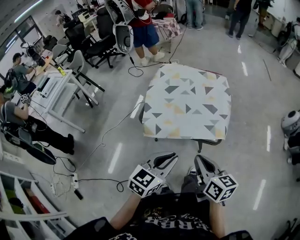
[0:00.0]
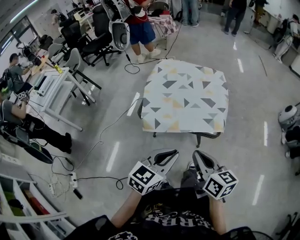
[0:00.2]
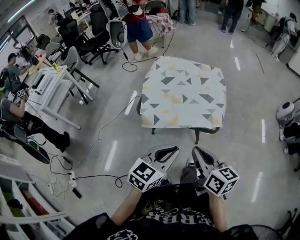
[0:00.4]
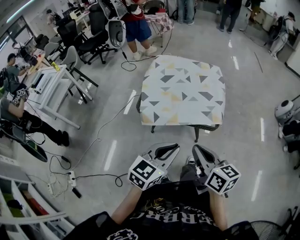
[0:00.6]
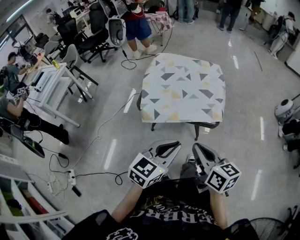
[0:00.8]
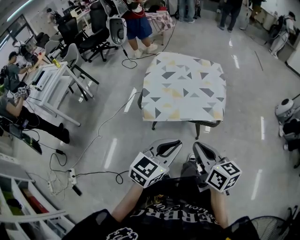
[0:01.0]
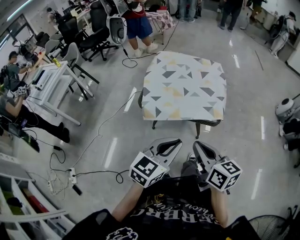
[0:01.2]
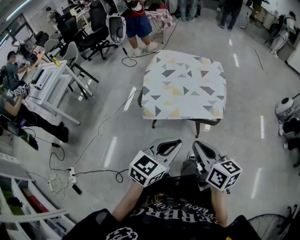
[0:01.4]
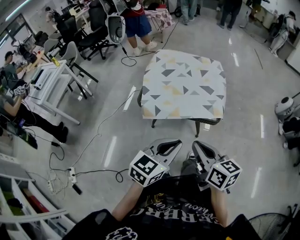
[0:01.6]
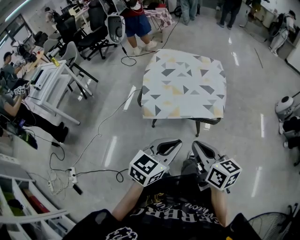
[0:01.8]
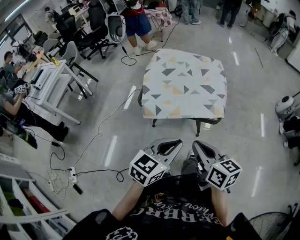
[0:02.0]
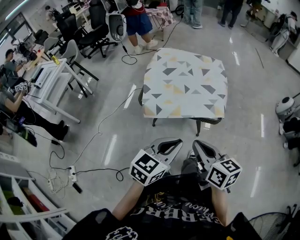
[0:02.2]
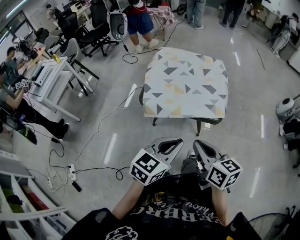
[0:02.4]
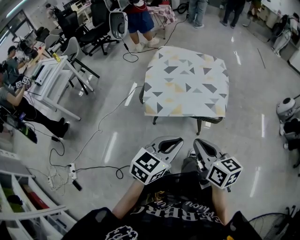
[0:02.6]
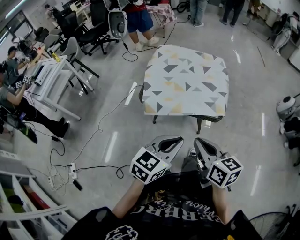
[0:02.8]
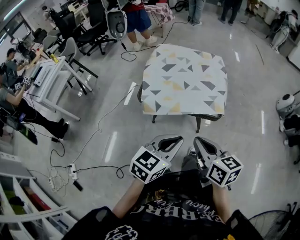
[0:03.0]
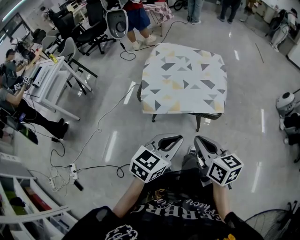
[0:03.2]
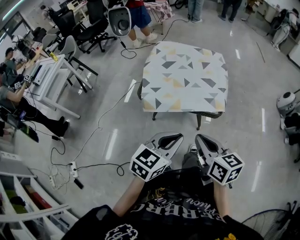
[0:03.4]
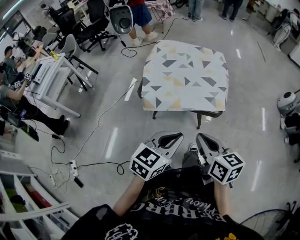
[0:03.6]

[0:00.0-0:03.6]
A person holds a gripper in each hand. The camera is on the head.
0:00.0 to 0:01.8: Both grippers travel together backward, roughly 5 cm.
0:01.8 to 0:03.6: The grippers stay close to where they were, moving slightly.

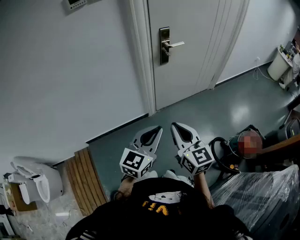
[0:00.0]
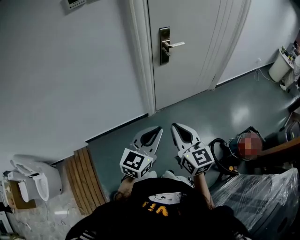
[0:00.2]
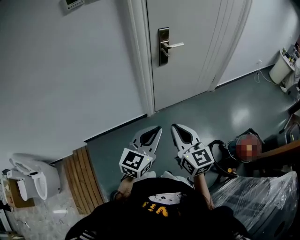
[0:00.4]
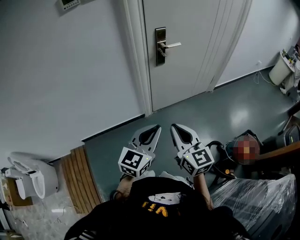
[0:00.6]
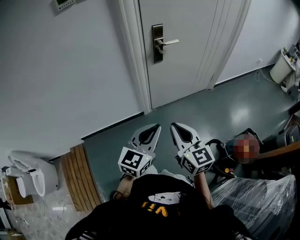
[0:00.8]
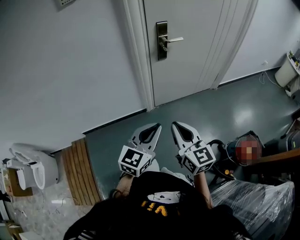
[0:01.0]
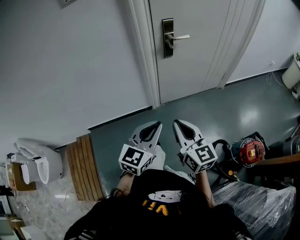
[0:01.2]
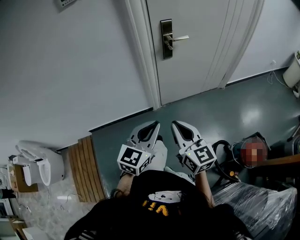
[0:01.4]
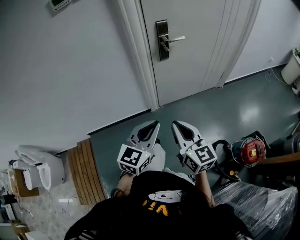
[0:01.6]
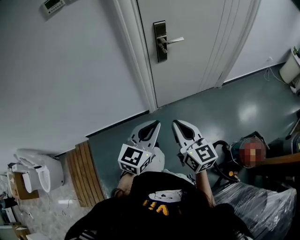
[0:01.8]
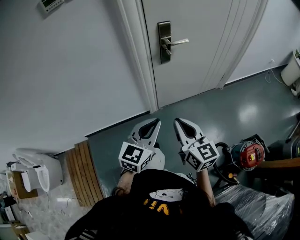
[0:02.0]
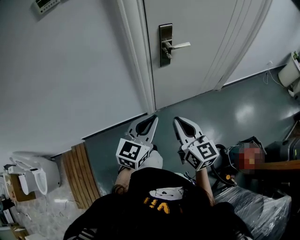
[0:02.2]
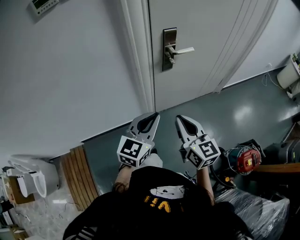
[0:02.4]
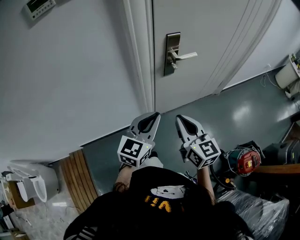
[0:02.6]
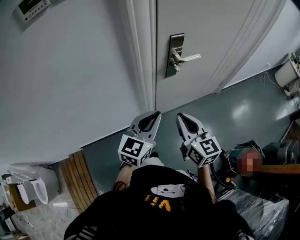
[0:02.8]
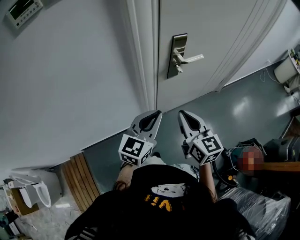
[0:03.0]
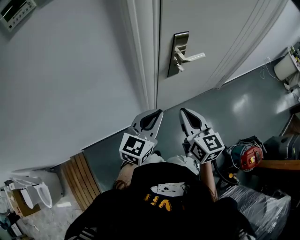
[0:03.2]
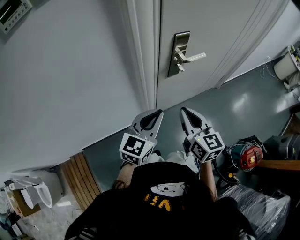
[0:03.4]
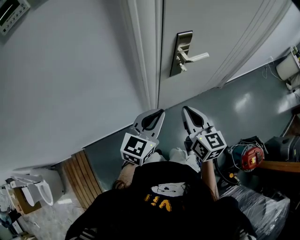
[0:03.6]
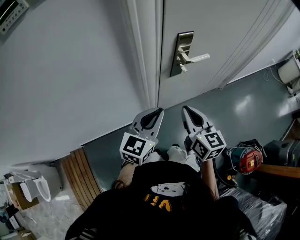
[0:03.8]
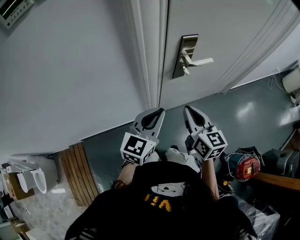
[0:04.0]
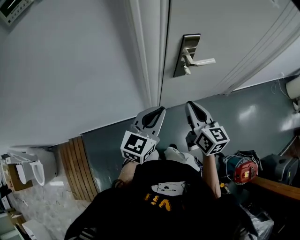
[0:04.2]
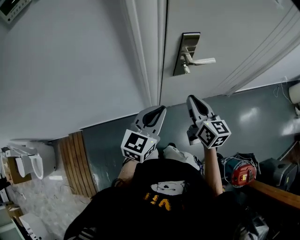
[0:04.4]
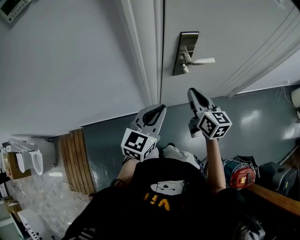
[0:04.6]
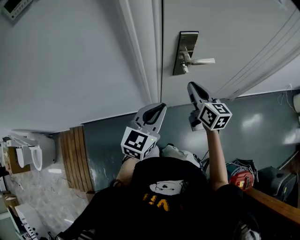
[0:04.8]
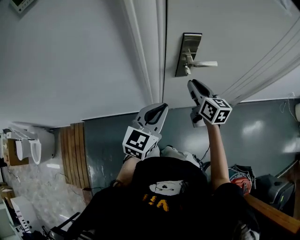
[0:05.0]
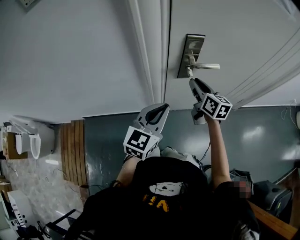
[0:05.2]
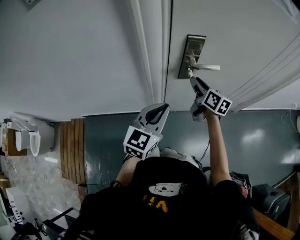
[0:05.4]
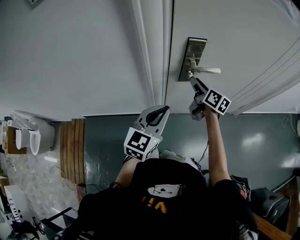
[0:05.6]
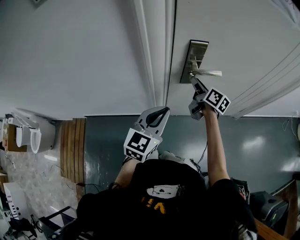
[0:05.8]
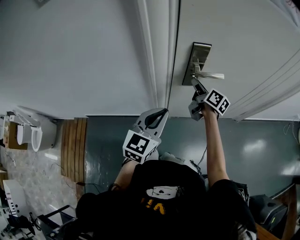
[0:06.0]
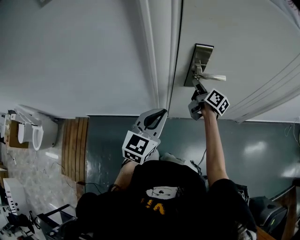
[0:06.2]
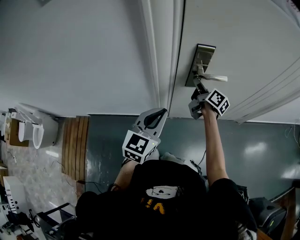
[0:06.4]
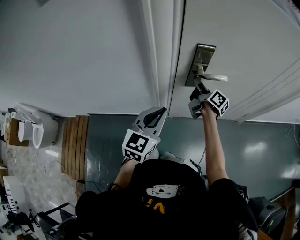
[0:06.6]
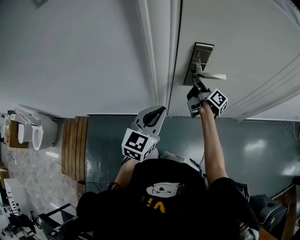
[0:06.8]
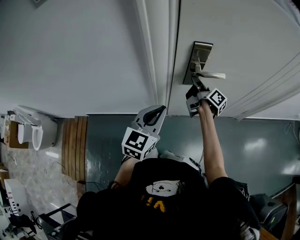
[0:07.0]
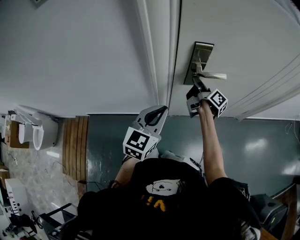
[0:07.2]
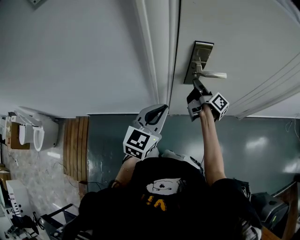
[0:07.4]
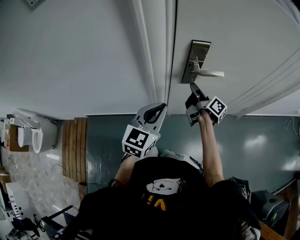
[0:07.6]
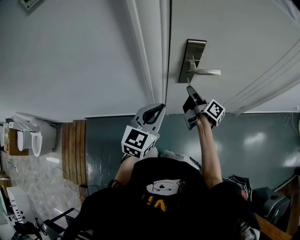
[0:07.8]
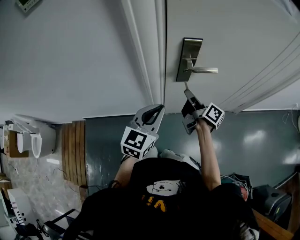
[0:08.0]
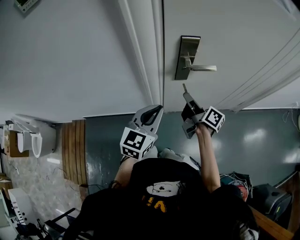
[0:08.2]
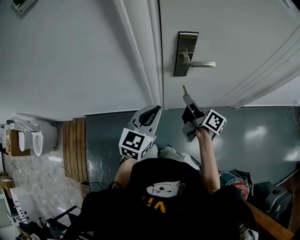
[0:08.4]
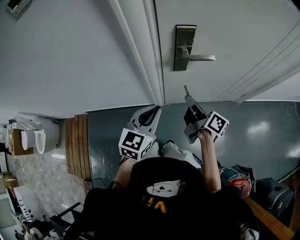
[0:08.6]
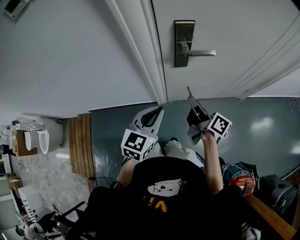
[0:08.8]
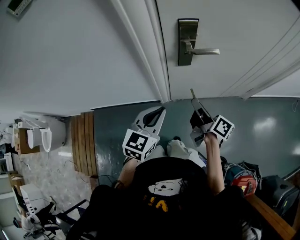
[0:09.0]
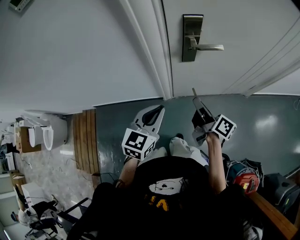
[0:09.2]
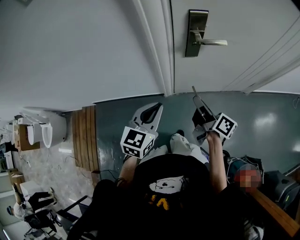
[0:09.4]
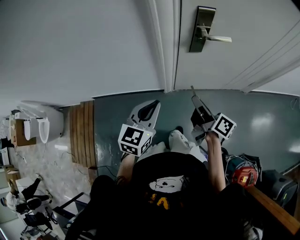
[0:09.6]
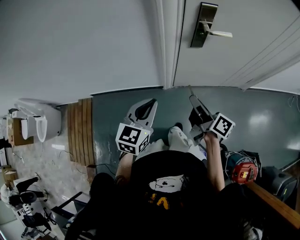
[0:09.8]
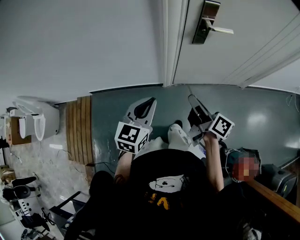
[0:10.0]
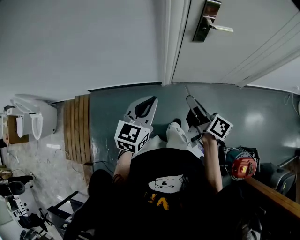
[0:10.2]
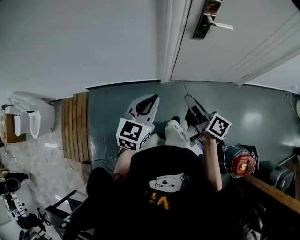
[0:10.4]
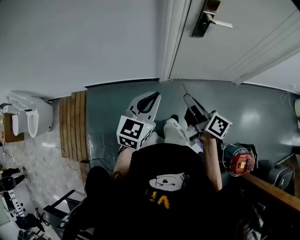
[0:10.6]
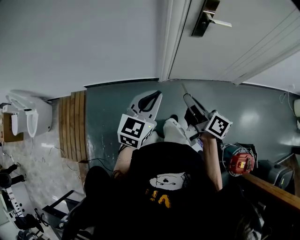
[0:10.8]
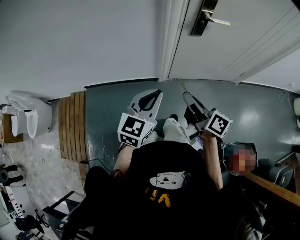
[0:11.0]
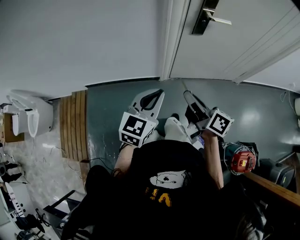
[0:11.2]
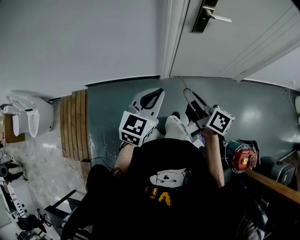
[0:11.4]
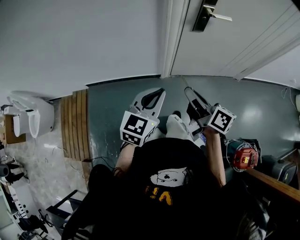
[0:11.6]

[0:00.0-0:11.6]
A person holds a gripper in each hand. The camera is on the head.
0:00.0 to 0:01.4: Both grippers travel together to the right, some 5 cm.
0:01.4 to 0:02.8: Both grippers travel together forward, roughly 25 cm.
0:02.8 to 0:04.4: The right gripper travels forward by approximately 15 cm; the left gripper shifts roughly 5 cm forward.
0:04.4 to 0:05.8: The right gripper travels forward and downward by roughly 15 cm, turns by roughly 30 degrees, and opens.
0:05.8 to 0:07.2: The right gripper turns by about 30 degrees, and closes its fingers.
0:07.2 to 0:08.8: The left gripper ends up roughly 5 cm from where it was; the right gripper heads backward, covering roughly 20 cm.
0:08.8 to 0:10.2: The left gripper is displaced to the left and backward by approximately 20 cm. The right gripper goes about 20 cm backward and to the left.
0:10.2 to 0:11.6: The two grippers go some 5 cm backward.

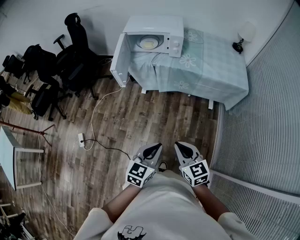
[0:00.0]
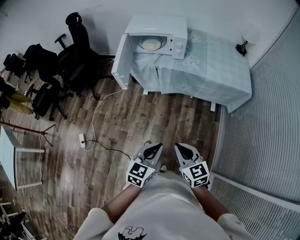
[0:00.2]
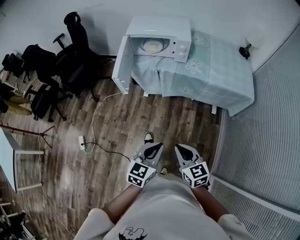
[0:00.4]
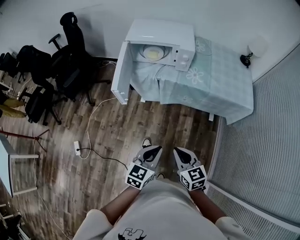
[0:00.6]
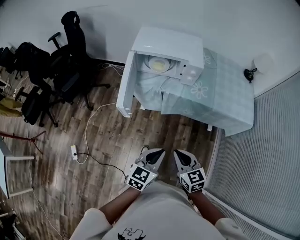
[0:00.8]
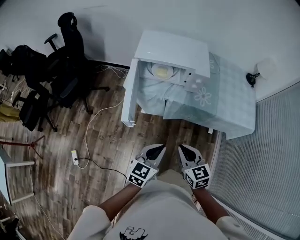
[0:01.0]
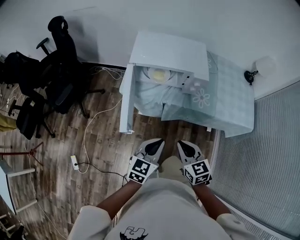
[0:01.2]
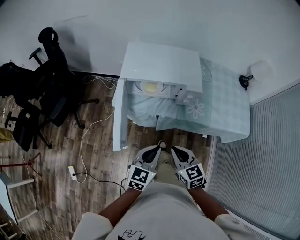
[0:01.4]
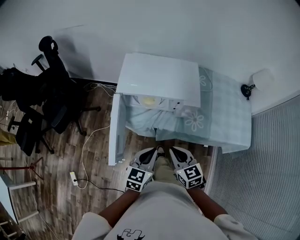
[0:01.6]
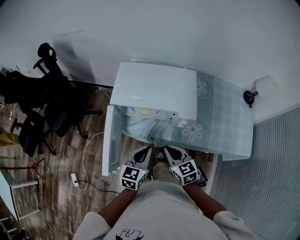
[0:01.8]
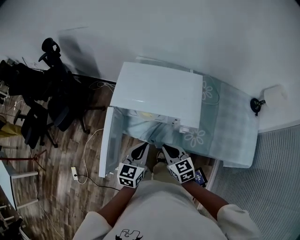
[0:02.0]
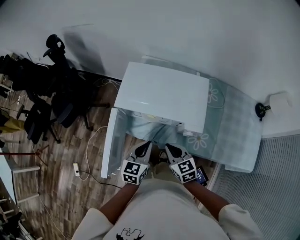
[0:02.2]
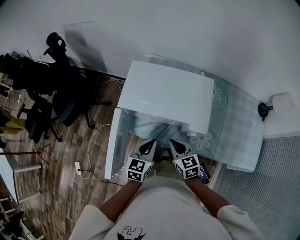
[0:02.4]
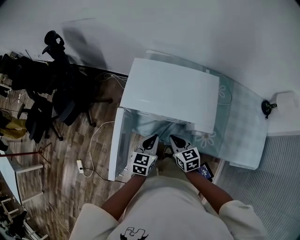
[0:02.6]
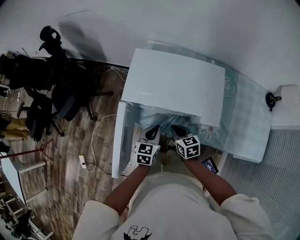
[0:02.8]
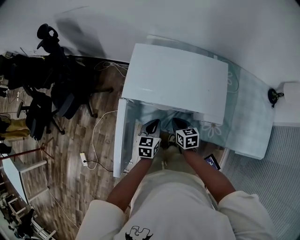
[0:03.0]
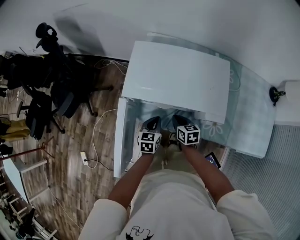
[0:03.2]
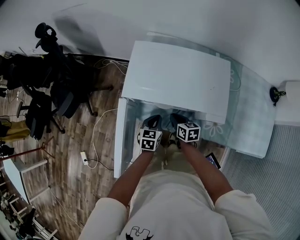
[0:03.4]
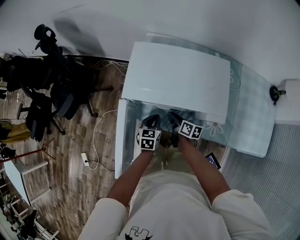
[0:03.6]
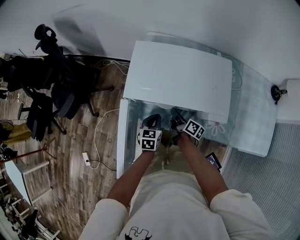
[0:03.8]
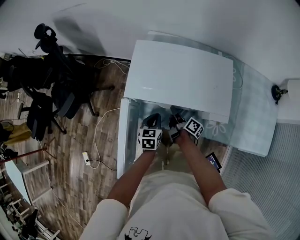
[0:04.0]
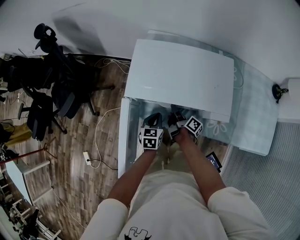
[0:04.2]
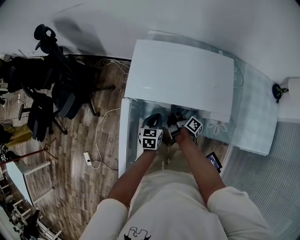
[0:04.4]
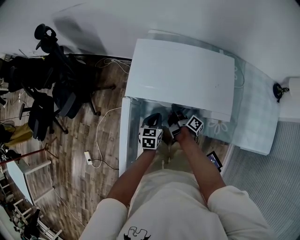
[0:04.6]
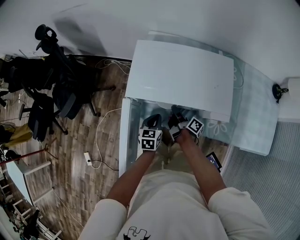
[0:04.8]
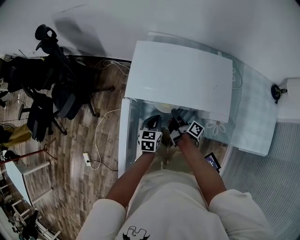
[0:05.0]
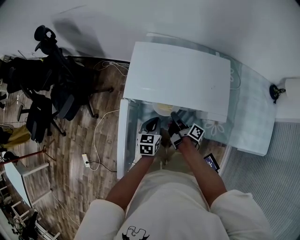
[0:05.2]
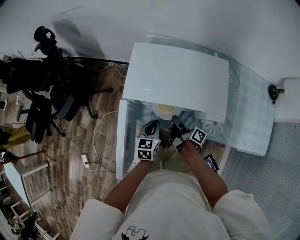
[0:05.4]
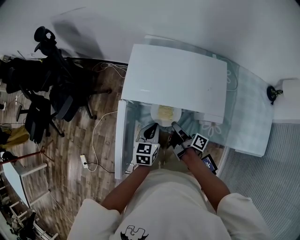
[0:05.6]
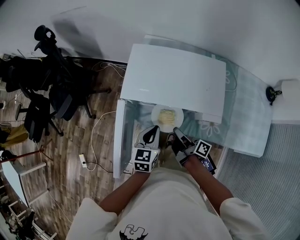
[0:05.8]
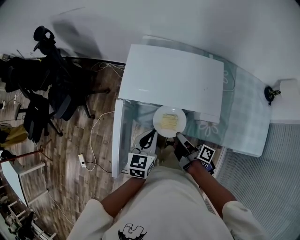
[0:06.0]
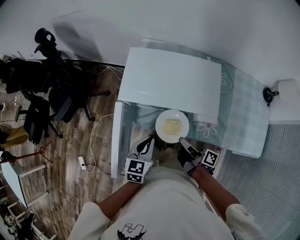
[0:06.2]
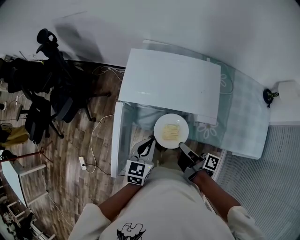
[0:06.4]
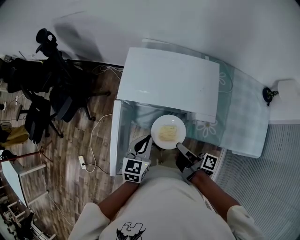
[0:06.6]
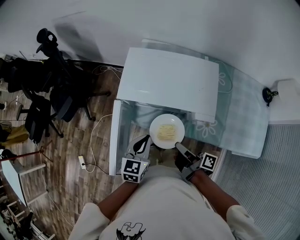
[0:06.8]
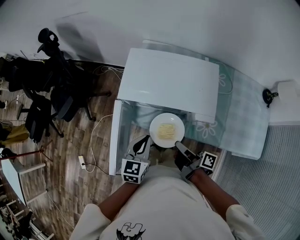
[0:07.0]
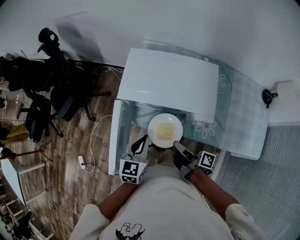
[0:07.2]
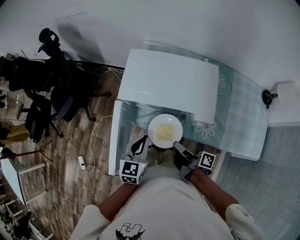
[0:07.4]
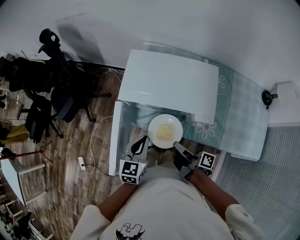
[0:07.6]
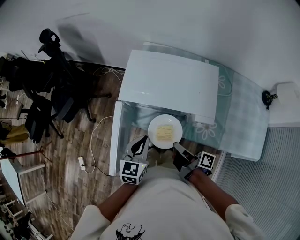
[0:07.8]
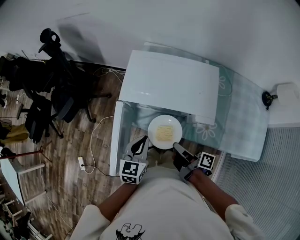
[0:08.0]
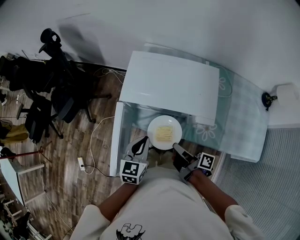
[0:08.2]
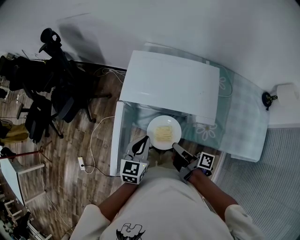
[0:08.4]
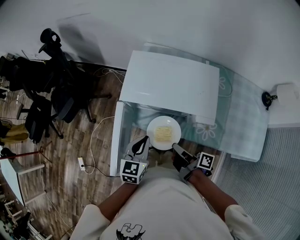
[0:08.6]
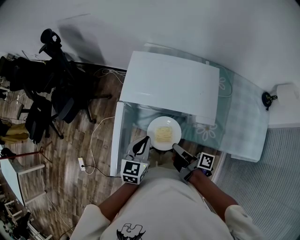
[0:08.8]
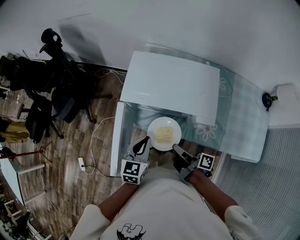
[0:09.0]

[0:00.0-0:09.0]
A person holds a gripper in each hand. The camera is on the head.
0:00.0 to 0:01.6: The two grippers travel together, forward, some 50 cm.
0:01.6 to 0:03.0: Both grippers travel together forward and downward, approximately 25 cm. The right gripper changes its angle by roughly 20 degrees. Meanwhile the left gripper turns by some 20 degrees.
0:03.0 to 0:04.4: The right gripper moves forward, about 5 cm, and rolls clockwise, seen from behind, by some 70 degrees, while the left gripper changes place by about 5 cm.
0:04.4 to 0:06.0: The two grippers go approximately 15 cm upward and backward.
0:06.0 to 0:07.6: The right gripper moves about 5 cm.
0:07.6 to 0:09.0: Both grippers stay put.
